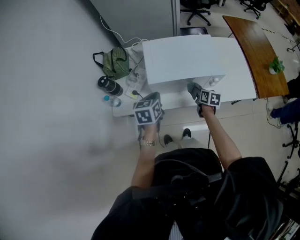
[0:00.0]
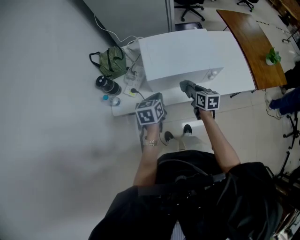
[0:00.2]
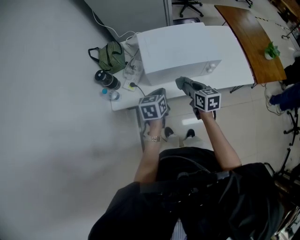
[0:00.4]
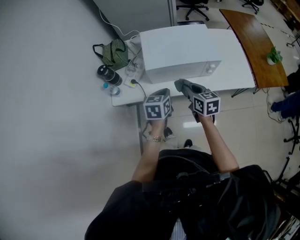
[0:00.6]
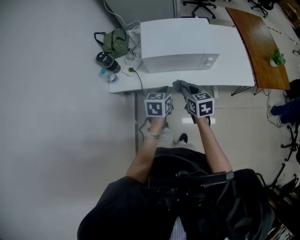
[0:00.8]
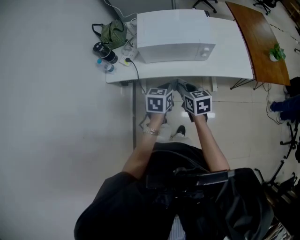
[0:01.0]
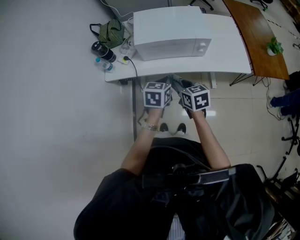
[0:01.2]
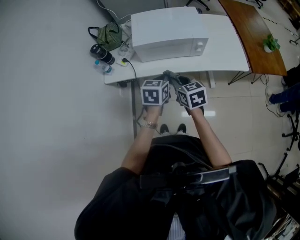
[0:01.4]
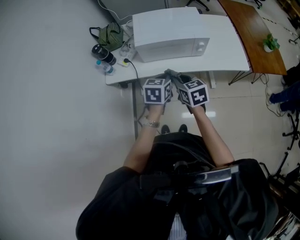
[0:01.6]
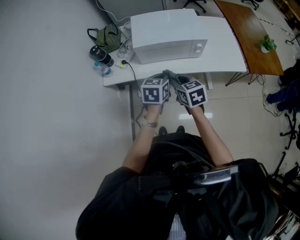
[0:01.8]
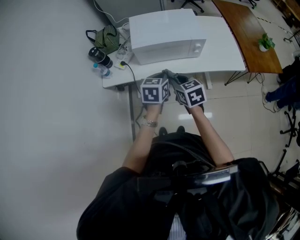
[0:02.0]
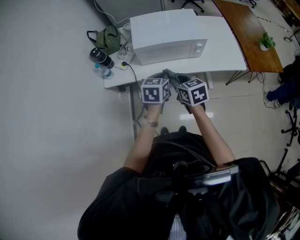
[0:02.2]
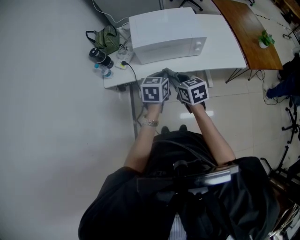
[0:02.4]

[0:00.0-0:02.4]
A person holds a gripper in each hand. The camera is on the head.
0:00.0 to 0:01.2: The left gripper travels backward and to the right by some 20 cm; the right gripper heads backward and upward, covering about 25 cm, and rotates some 30 degrees.
0:01.2 to 0:02.4: The grippers move only a little.

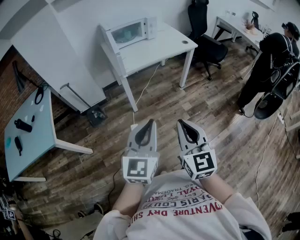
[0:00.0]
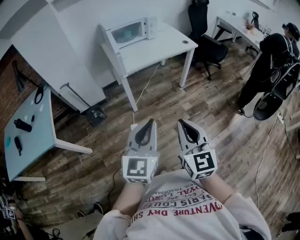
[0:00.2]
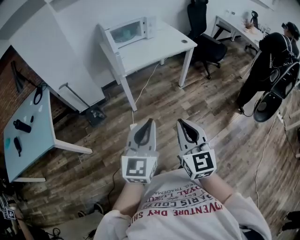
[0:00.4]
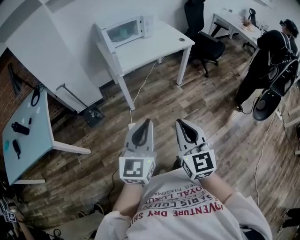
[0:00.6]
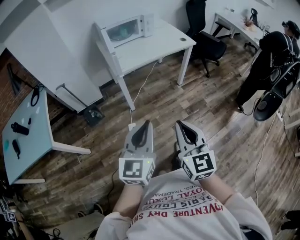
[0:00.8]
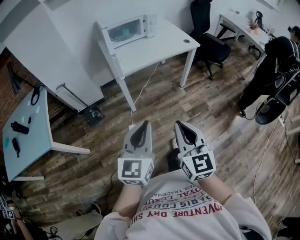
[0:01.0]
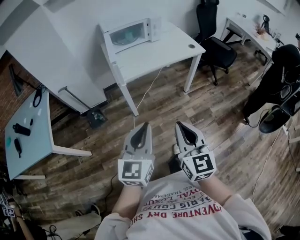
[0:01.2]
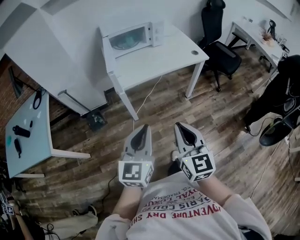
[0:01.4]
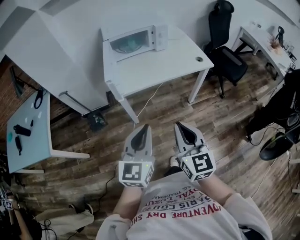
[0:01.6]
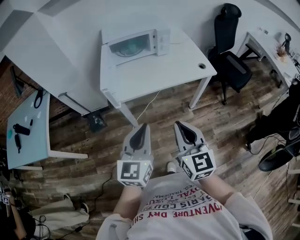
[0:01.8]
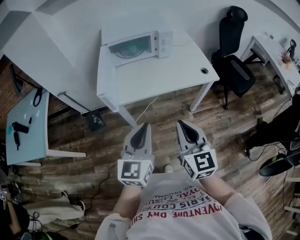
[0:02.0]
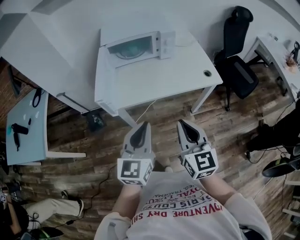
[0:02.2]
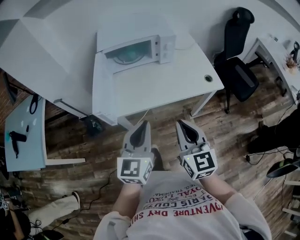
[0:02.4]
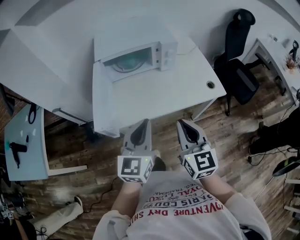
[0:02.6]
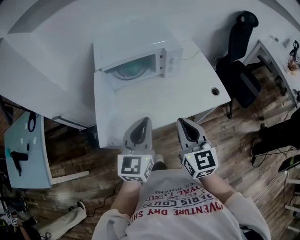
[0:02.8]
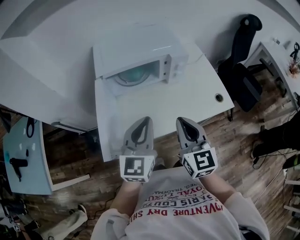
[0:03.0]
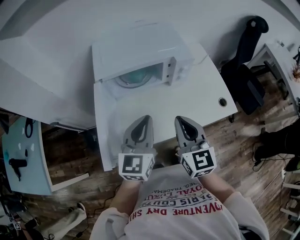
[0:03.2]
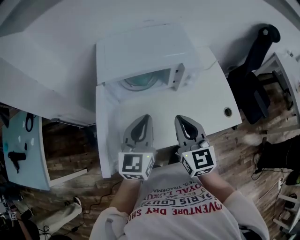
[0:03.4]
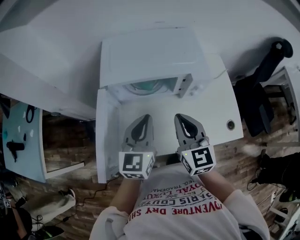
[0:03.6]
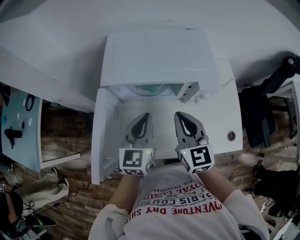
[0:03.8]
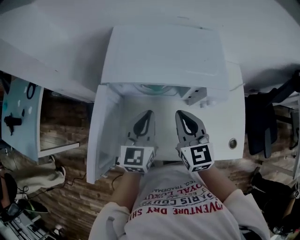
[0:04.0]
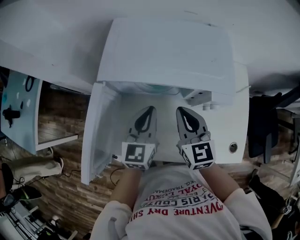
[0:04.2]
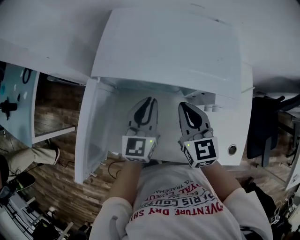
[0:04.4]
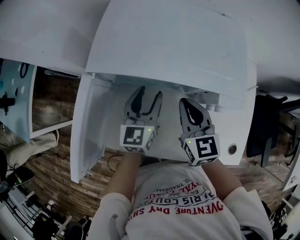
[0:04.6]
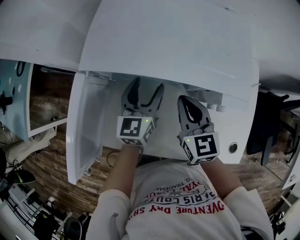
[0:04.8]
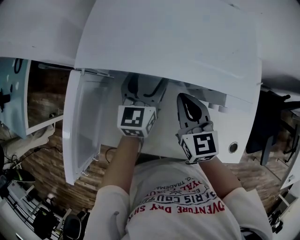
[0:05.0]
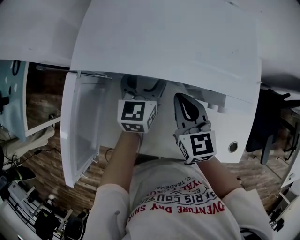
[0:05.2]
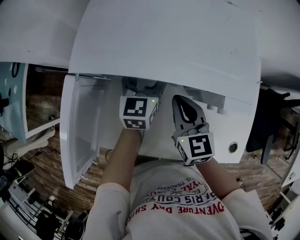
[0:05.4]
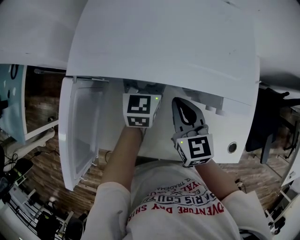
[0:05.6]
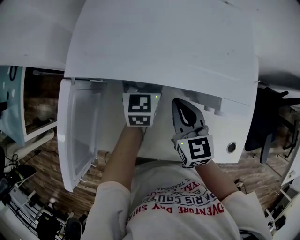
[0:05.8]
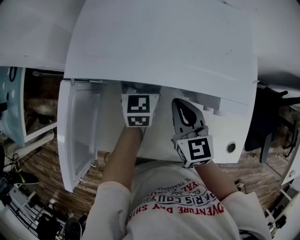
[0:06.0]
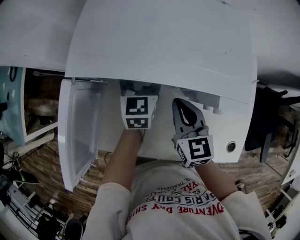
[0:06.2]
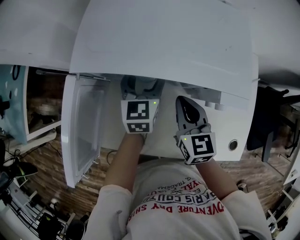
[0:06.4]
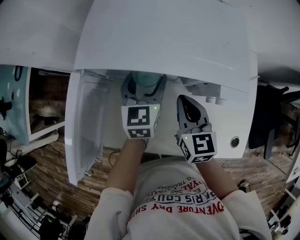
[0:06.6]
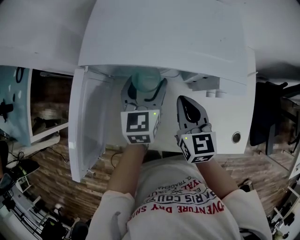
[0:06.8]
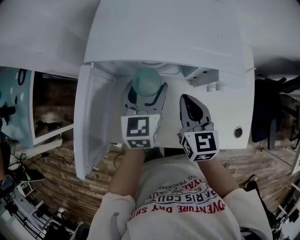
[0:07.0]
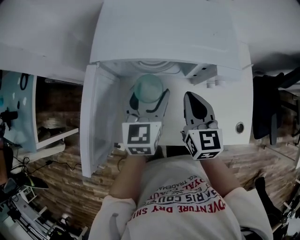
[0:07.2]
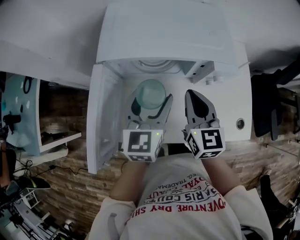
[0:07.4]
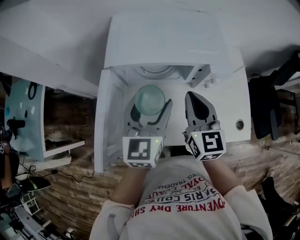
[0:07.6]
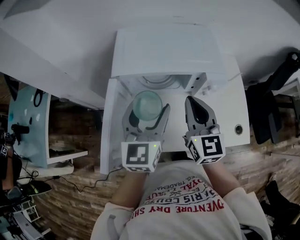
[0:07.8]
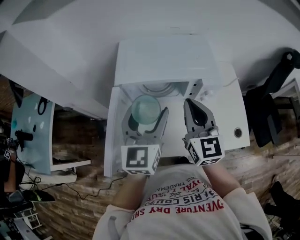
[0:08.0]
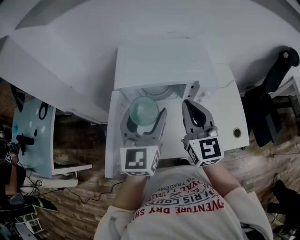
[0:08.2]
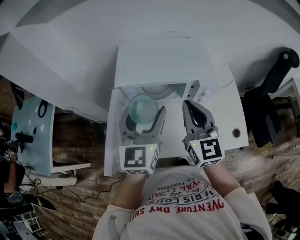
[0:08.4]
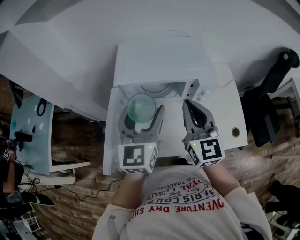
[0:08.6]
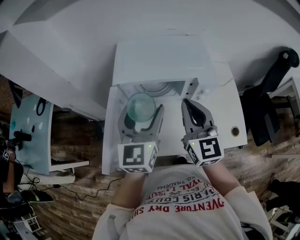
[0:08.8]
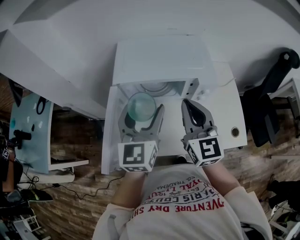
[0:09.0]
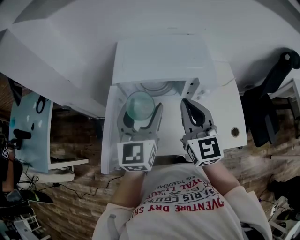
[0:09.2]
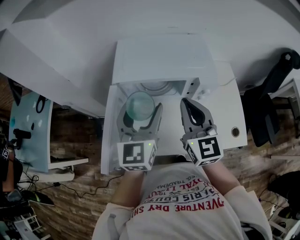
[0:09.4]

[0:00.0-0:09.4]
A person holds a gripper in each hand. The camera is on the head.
0:00.0 to 0:01.6: The grippers both shift forward by about 25 cm.
0:01.6 to 0:03.2: The pair of grippers is taken forward, roughly 40 cm.
0:03.2 to 0:04.8: The left gripper changes place by approximately 30 cm, turns by about 30 degrees, and opens. The right gripper changes place by approximately 25 cm, and changes its angle by about 30 degrees.
0:04.8 to 0:06.2: The left gripper goes roughly 5 cm forward.
0:06.2 to 0:07.8: Both grippers travel together upward and backward, some 25 cm. The right gripper swivels some 20 degrees.
0:07.8 to 0:09.4: The grippers move only a little.

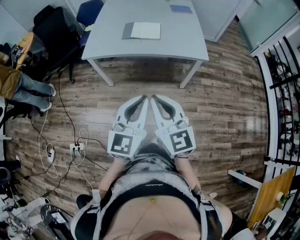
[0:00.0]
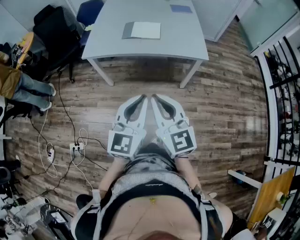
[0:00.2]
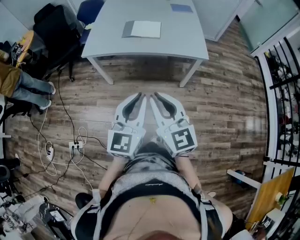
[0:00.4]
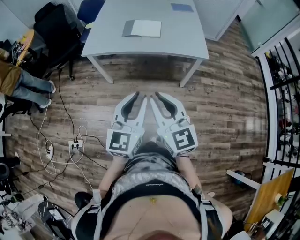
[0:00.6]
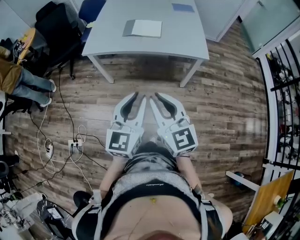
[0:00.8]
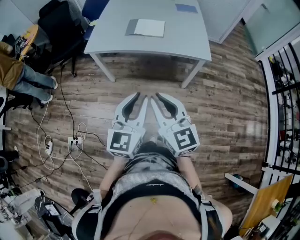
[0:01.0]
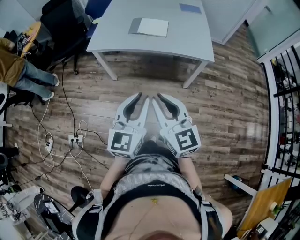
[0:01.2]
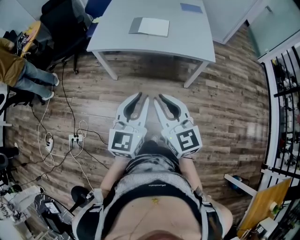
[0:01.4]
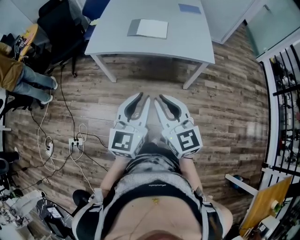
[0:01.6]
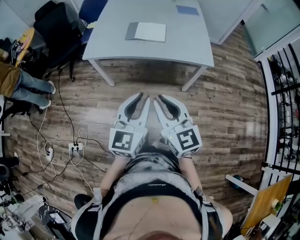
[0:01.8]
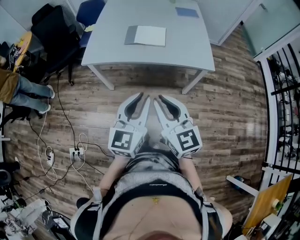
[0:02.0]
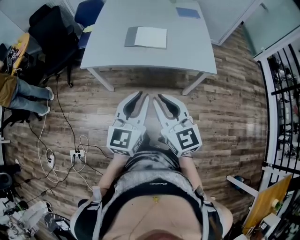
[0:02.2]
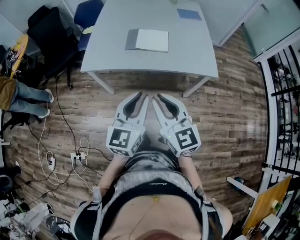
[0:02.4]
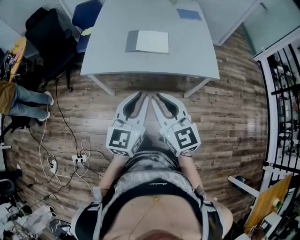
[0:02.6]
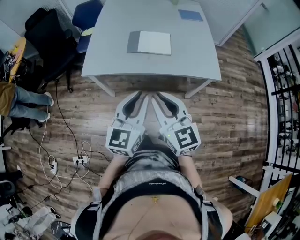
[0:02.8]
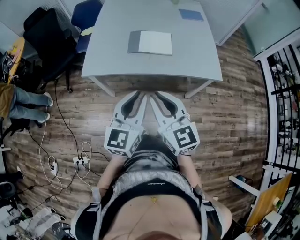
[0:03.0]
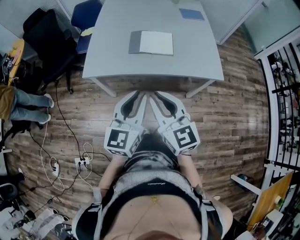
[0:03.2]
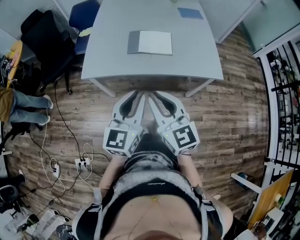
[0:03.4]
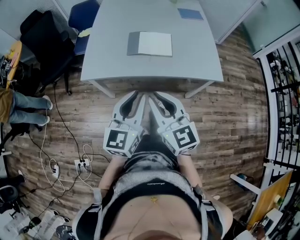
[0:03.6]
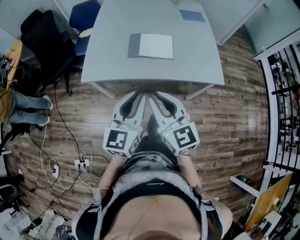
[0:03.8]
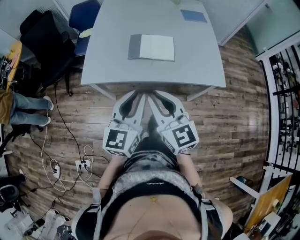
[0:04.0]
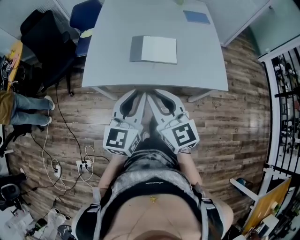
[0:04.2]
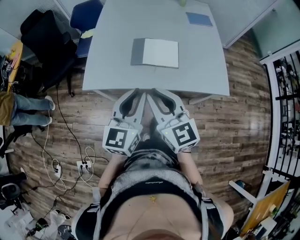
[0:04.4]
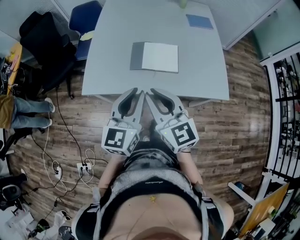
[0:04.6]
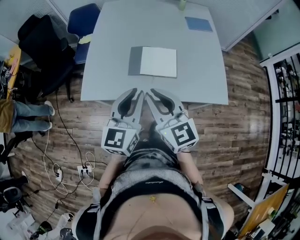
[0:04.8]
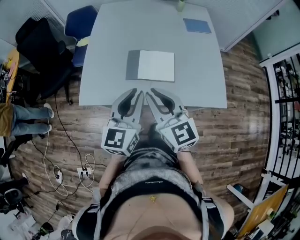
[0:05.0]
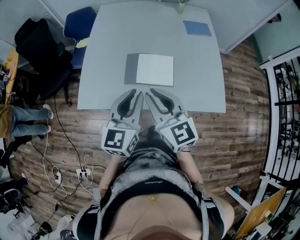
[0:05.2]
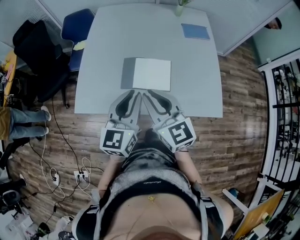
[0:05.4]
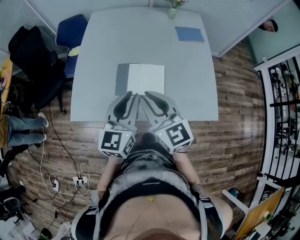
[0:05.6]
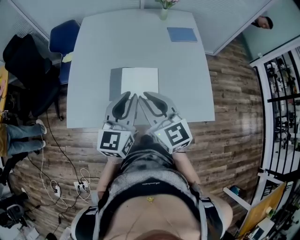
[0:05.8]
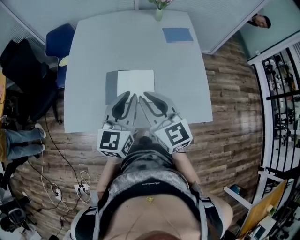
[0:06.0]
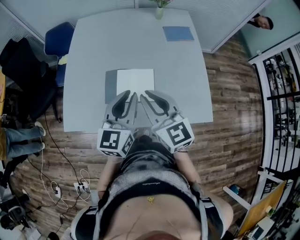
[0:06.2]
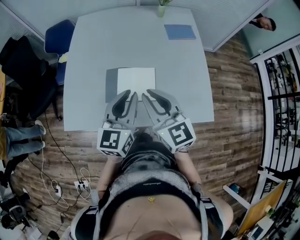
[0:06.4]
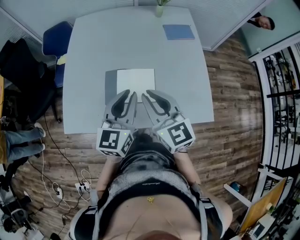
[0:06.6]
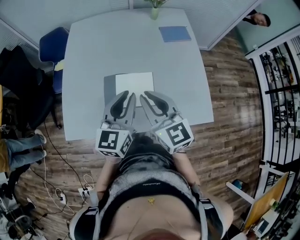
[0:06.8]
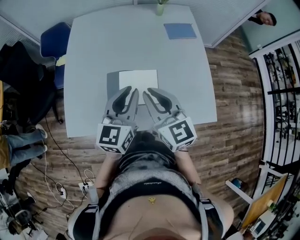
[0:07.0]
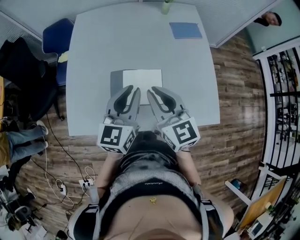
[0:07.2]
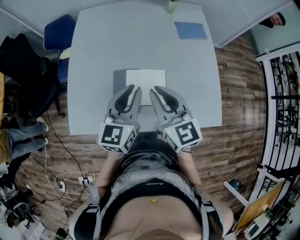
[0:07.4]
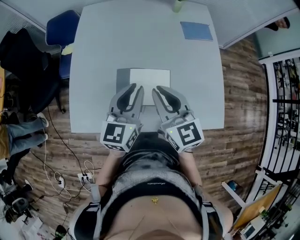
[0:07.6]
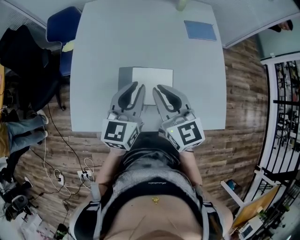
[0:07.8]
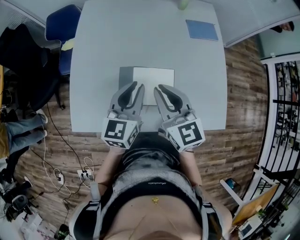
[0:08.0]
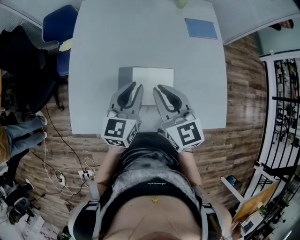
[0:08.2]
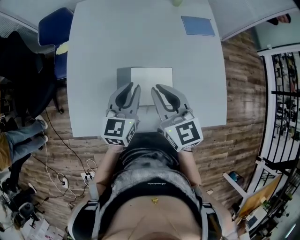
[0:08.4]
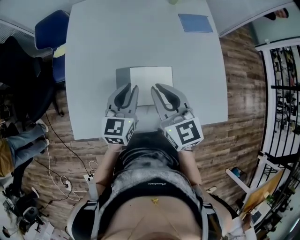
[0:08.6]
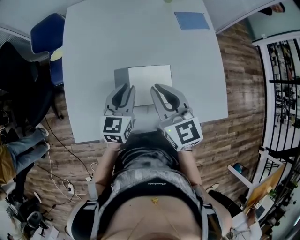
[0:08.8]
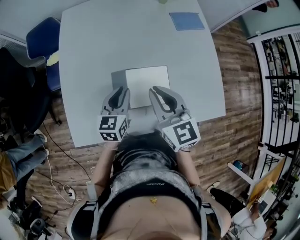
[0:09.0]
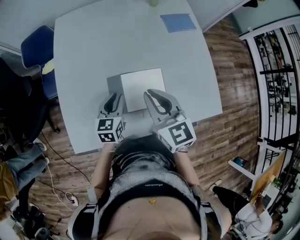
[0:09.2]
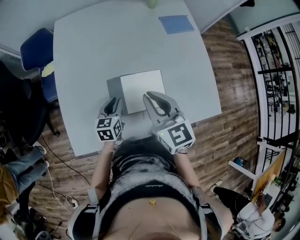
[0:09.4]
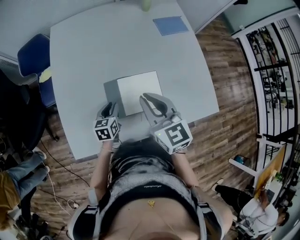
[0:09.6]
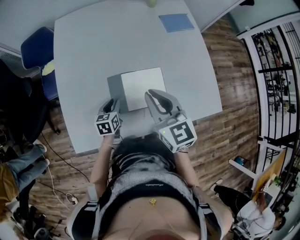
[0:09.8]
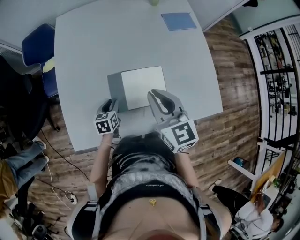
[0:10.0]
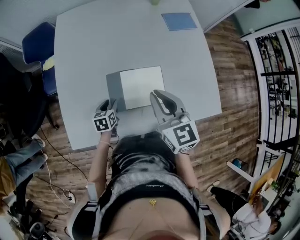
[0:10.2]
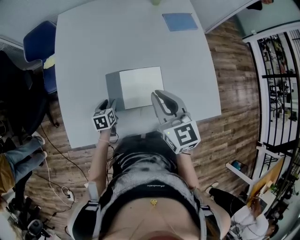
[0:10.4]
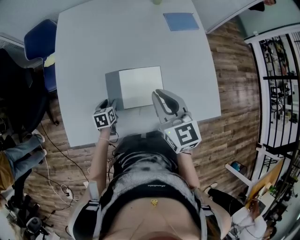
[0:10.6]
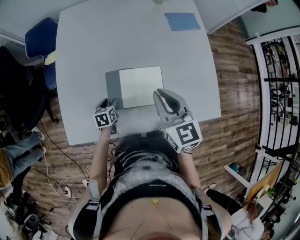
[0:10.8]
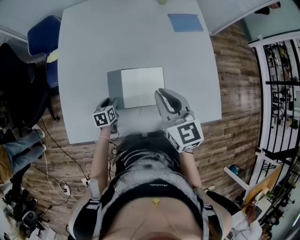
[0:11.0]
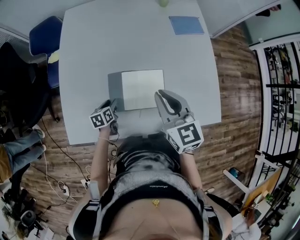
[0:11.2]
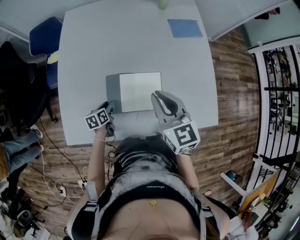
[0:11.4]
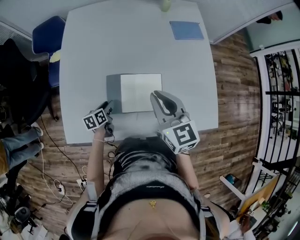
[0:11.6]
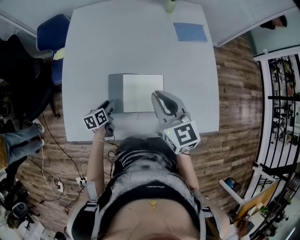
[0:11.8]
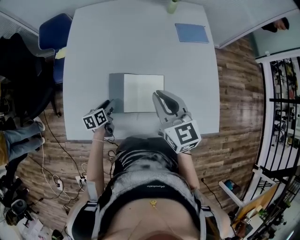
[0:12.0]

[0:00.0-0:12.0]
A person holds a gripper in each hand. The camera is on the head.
0:00.0 to 0:01.6: The grippers make only small movements.
0:01.6 to 0:03.0: The grippers both shift forward by approximately 20 cm.
0:03.0 to 0:04.4: The grippers both shift forward by approximately 15 cm.
0:04.4 to 0:06.0: The two grippers go roughly 25 cm forward and to the right.
0:06.0 to 0:07.6: Both grippers travel together forward, about 10 cm.
0:07.6 to 0:09.0: The right gripper changes place by roughly 5 cm. Meanwhile the left gripper heads downward and to the left, covering some 15 cm.
0:09.0 to 0:10.4: The left gripper moves downward, some 15 cm, and turns by about 30 degrees.
